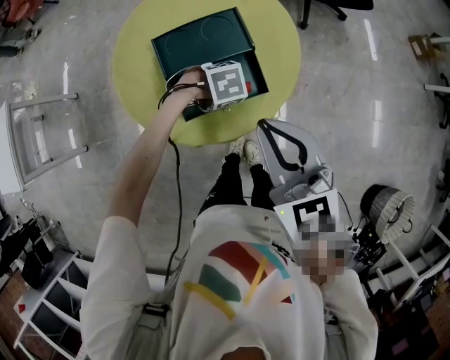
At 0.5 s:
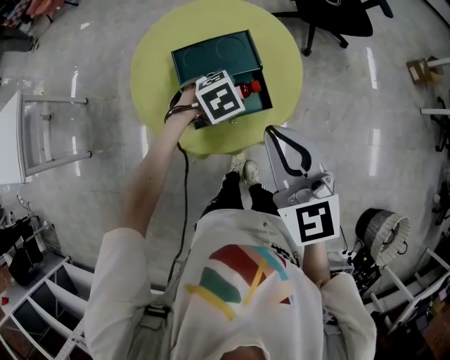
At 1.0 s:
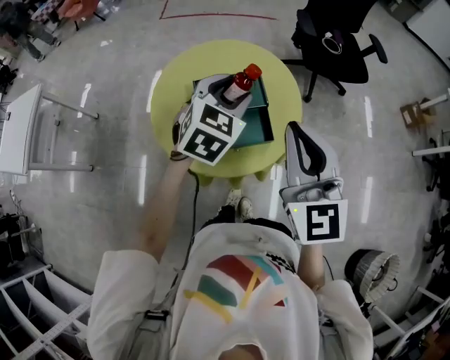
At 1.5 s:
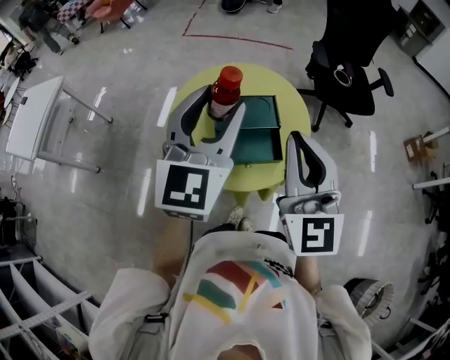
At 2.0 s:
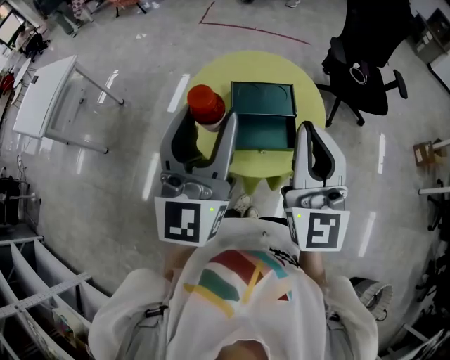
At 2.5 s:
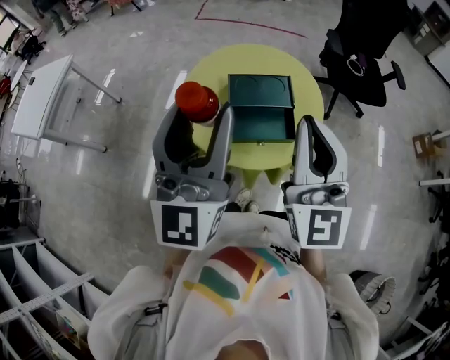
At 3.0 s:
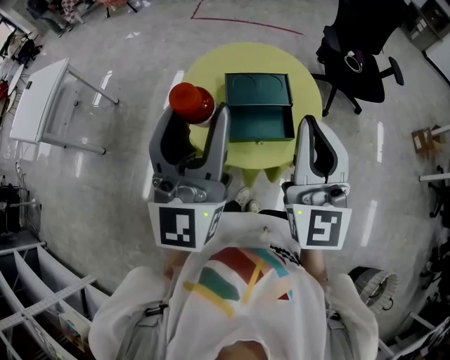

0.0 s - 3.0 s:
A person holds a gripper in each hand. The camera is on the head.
0.0 s - 1.5 s: The left gripper moves upward, some 40 cm, and tilts its fingers approximately 80 degrees upward; the right gripper heads upward, covering approximately 15 cm, and swivels approximately 30 degrees.
1.5 s - 3.0 s: The left gripper travels backward and to the left by roughly 10 cm, and swivels approximately 20 degrees.

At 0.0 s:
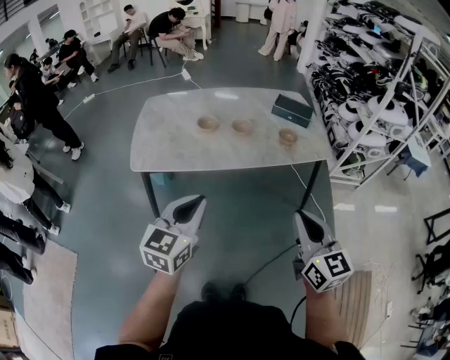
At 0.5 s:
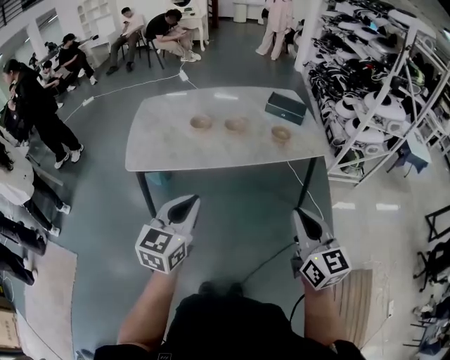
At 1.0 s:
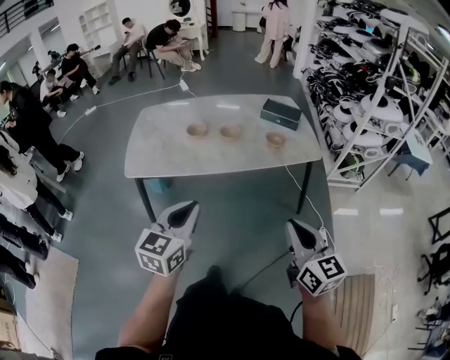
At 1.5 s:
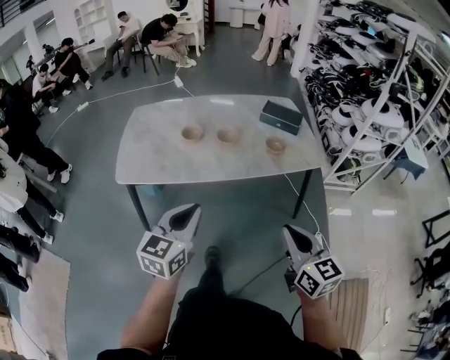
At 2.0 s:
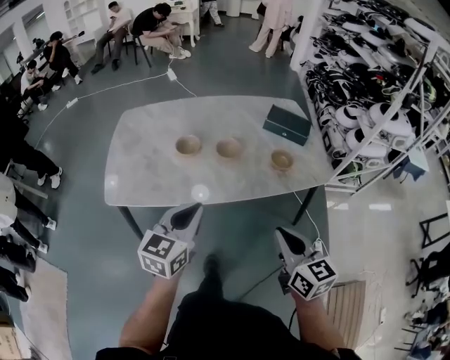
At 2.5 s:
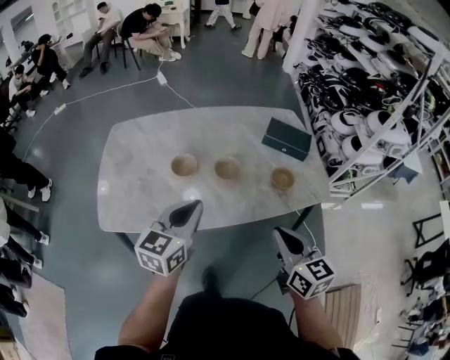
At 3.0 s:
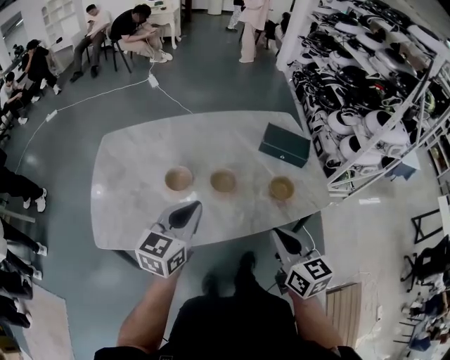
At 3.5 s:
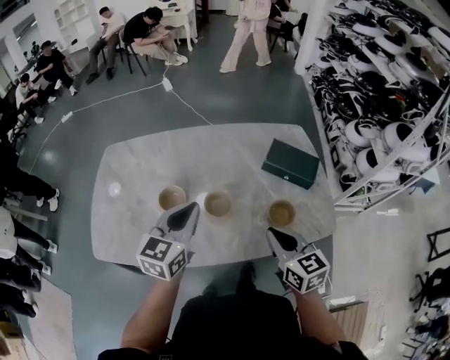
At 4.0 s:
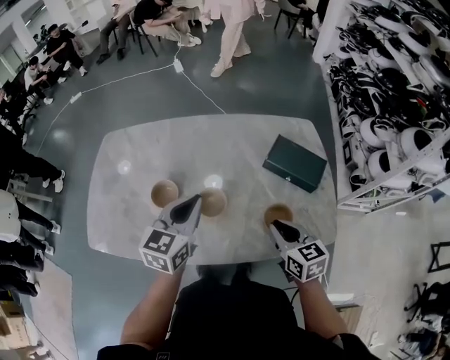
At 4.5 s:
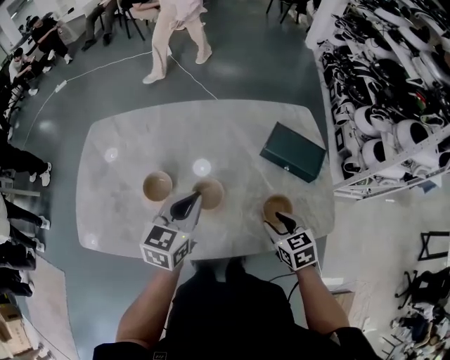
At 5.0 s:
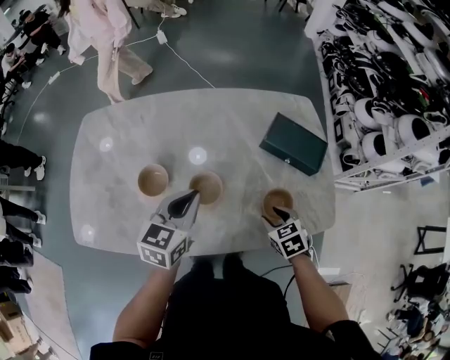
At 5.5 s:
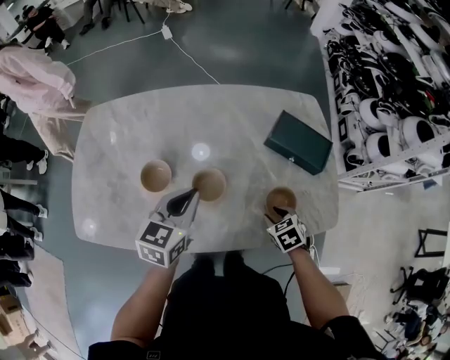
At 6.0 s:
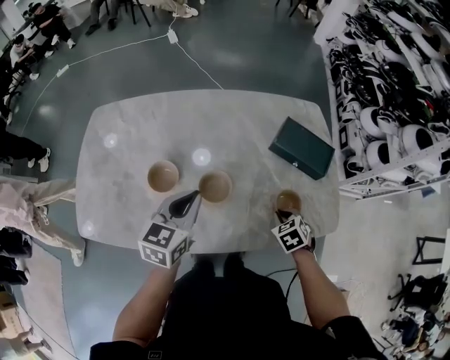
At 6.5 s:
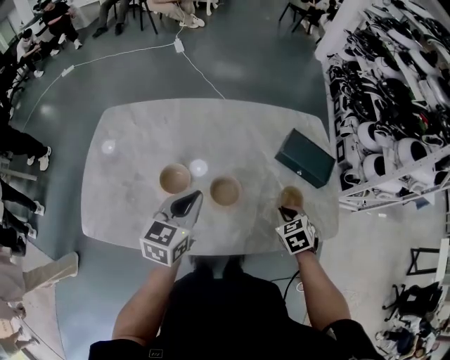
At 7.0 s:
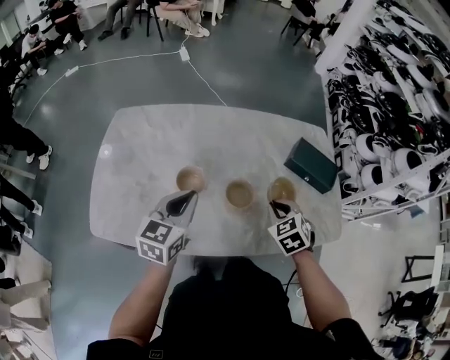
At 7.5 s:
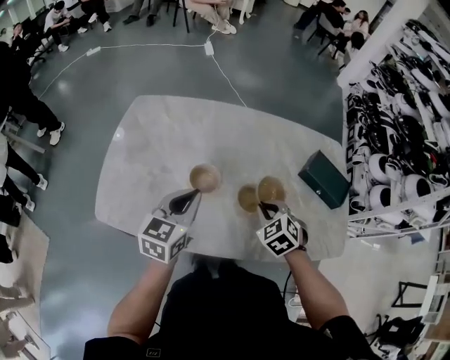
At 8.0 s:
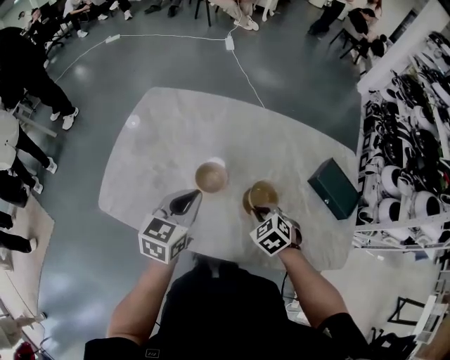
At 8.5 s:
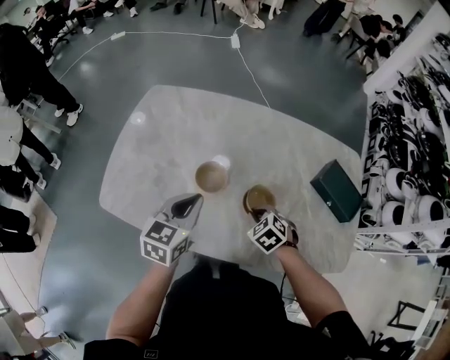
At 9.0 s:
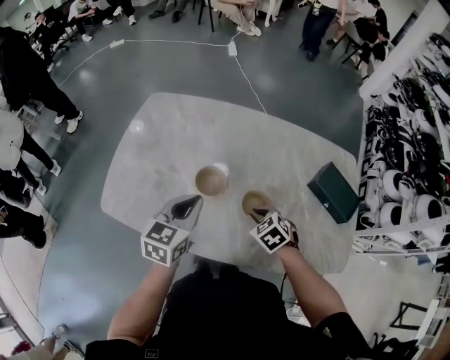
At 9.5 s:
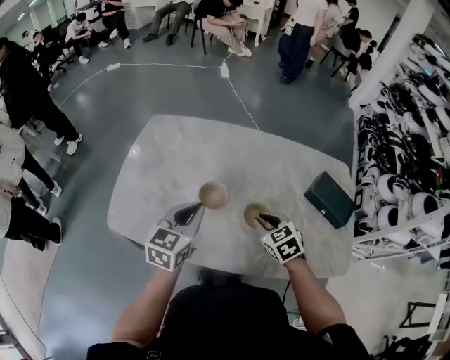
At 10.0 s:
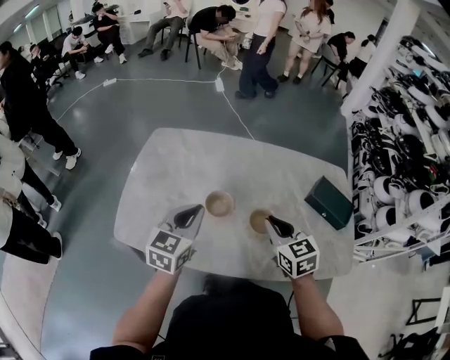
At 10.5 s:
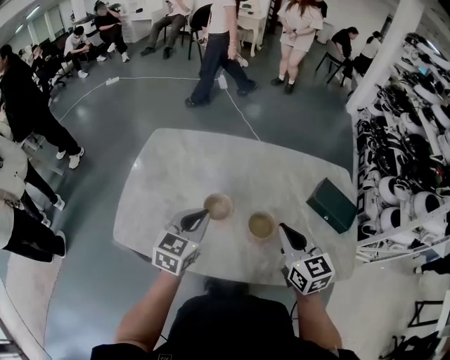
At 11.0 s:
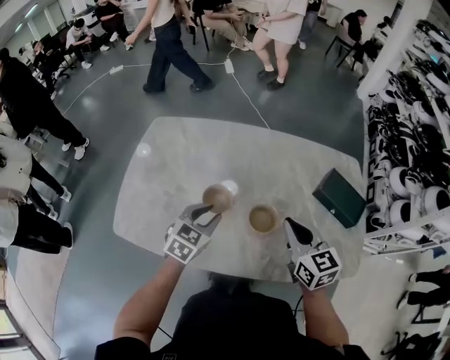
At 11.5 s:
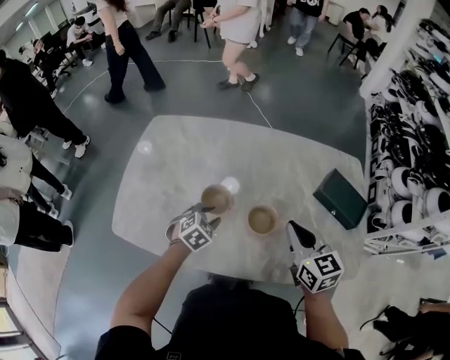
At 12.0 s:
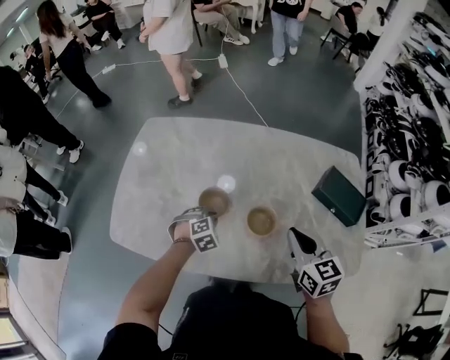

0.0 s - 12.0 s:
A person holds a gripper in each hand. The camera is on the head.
0.0 s - 2.0 s: The right gripper goes about 20 cm forward and downward; the left gripper goes about 25 cm forward.
2.0 s - 4.0 s: The two grippers go some 40 cm forward.
4.0 s - 6.0 s: The right gripper shifts some 15 cm downward, tips its fingers downward by about 40 degrees, and opens and closes again, while the left gripper travels downward by some 10 cm.
6.0 s - 8.0 s: The left gripper travels to the left by some 15 cm; the right gripper moves to the left, about 25 cm, and swivels roughly 30 degrees.
8.0 s - 10.0 s: The left gripper travels upward by about 5 cm. The right gripper travels upward by some 15 cm, and angles its fingers upward, by approximately 30 degrees.
10.0 s - 12.0 s: The left gripper travels downward by roughly 25 cm, and tilts its fingers about 50 degrees downward. The right gripper travels to the right by about 10 cm.

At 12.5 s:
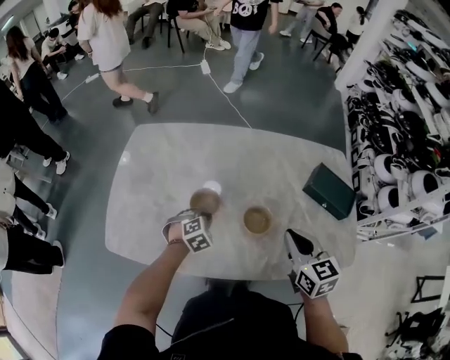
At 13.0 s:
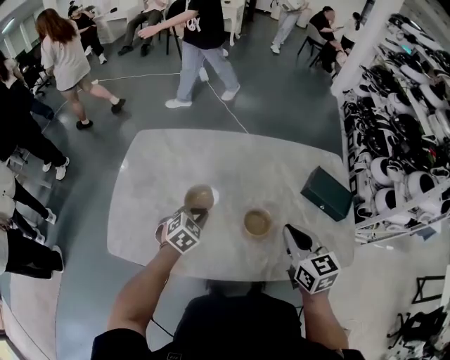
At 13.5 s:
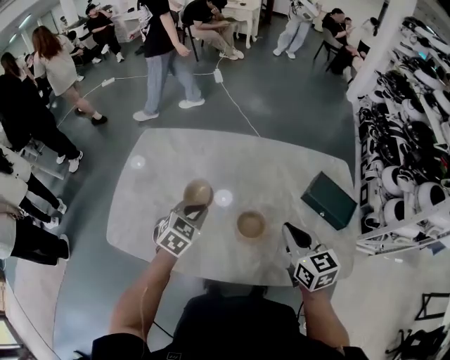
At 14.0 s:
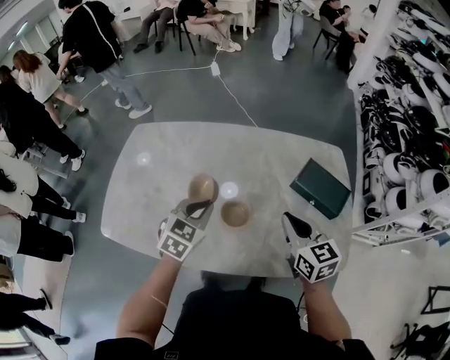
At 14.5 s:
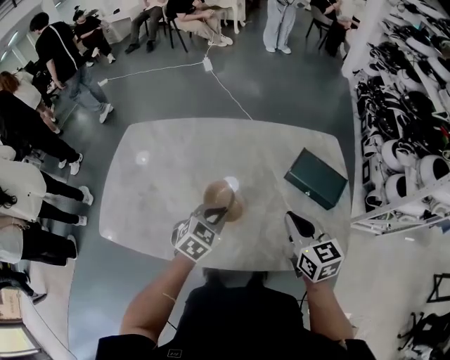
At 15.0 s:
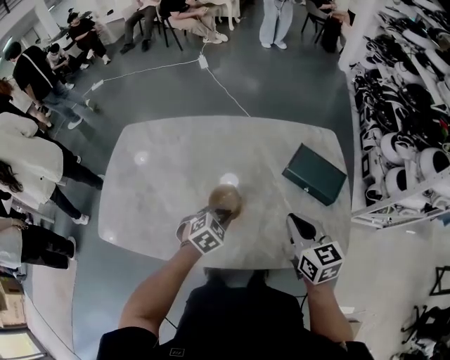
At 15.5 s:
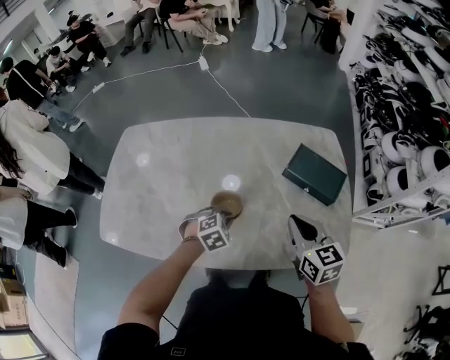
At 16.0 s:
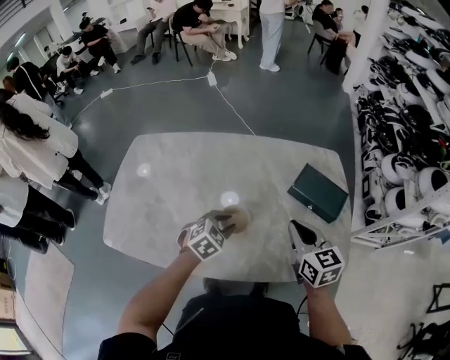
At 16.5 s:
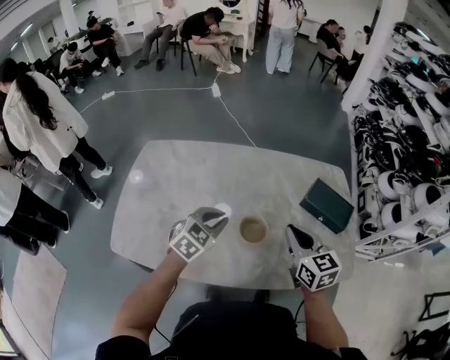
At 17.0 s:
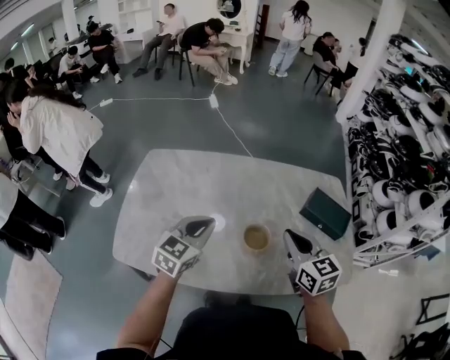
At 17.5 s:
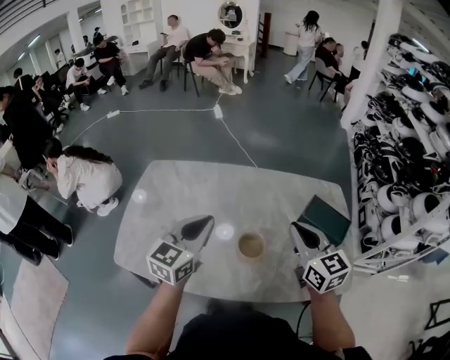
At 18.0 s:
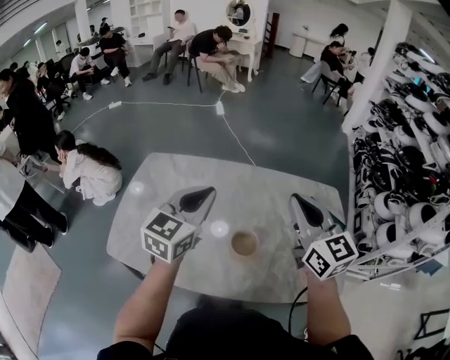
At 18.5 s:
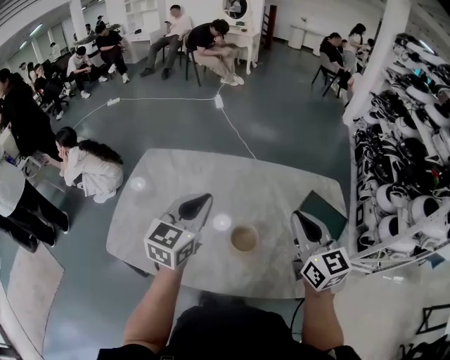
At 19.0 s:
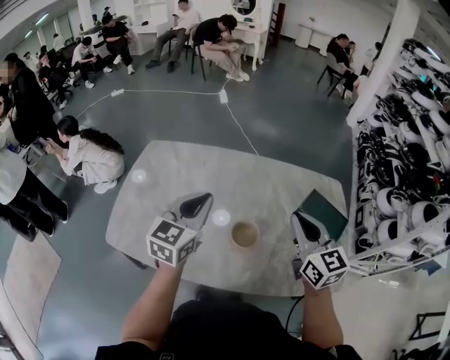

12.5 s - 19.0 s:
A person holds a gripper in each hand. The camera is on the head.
12.5 s - 14.5 s: The right gripper moves to the right, some 15 cm, while the left gripper goes approximately 25 cm to the right and upward, and rotates roughly 30 degrees.
14.5 s - 17.0 s: Both grippers move to the left and upward, about 20 cm. The left gripper rotates some 30 degrees, and opens and closes again.
17.0 s - 19.0 s: The right gripper moves to the right and upward, some 10 cm. The left gripper moves upward, about 10 cm.

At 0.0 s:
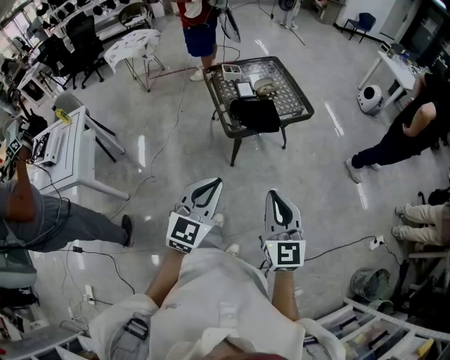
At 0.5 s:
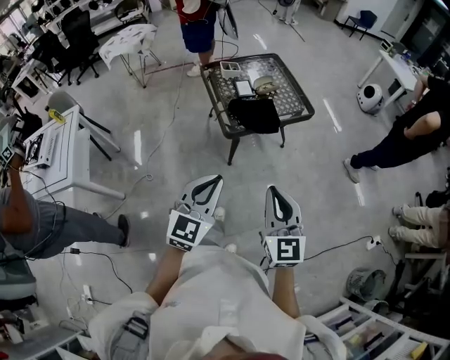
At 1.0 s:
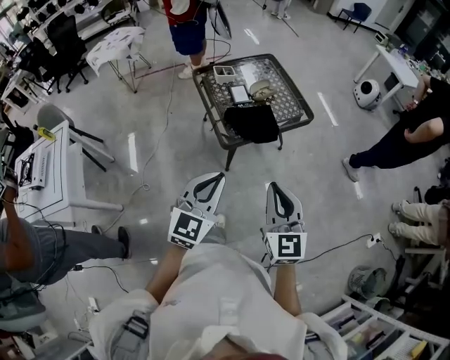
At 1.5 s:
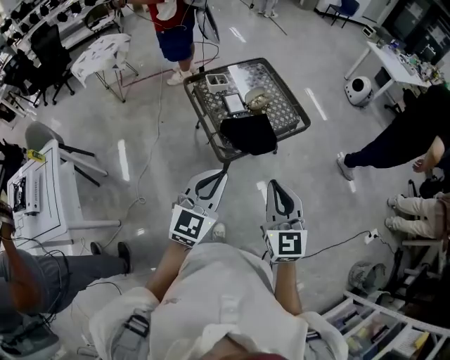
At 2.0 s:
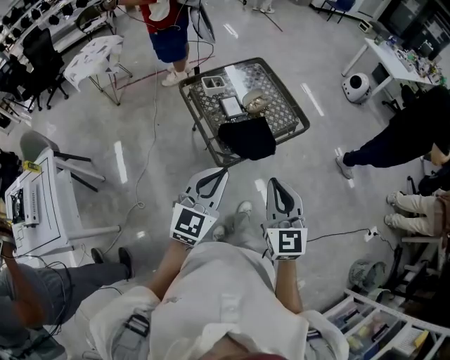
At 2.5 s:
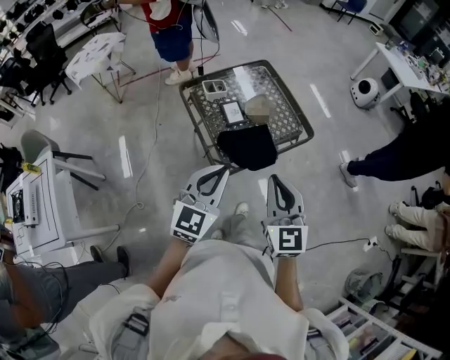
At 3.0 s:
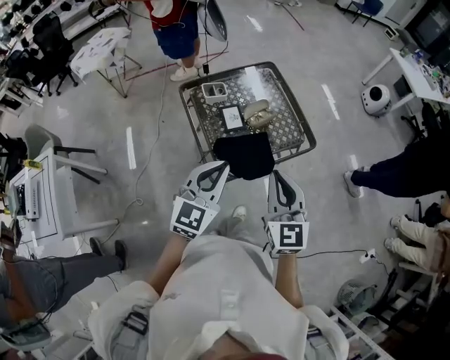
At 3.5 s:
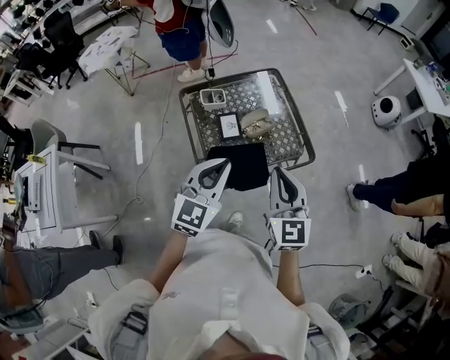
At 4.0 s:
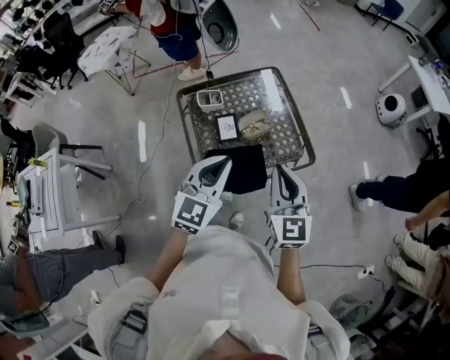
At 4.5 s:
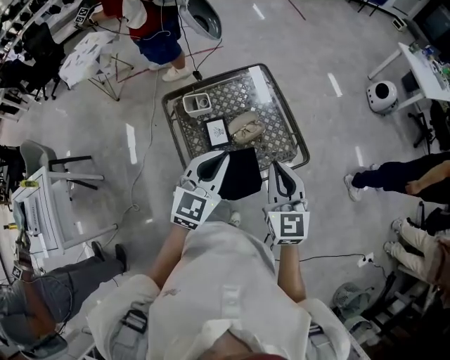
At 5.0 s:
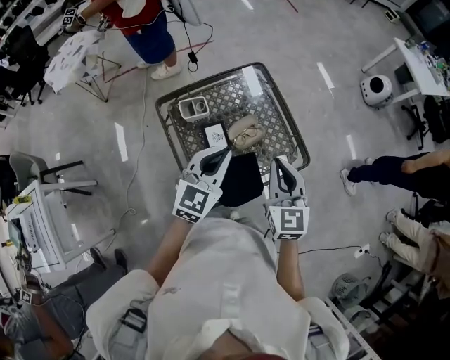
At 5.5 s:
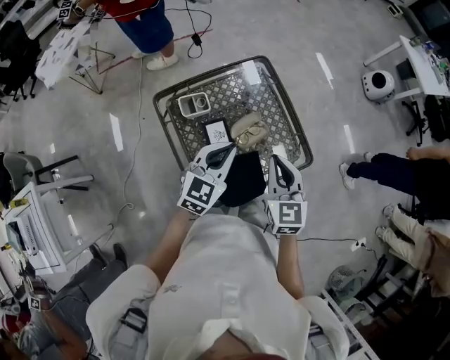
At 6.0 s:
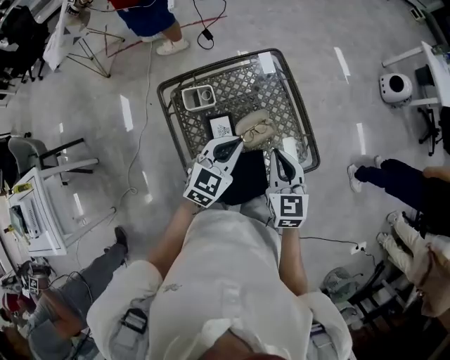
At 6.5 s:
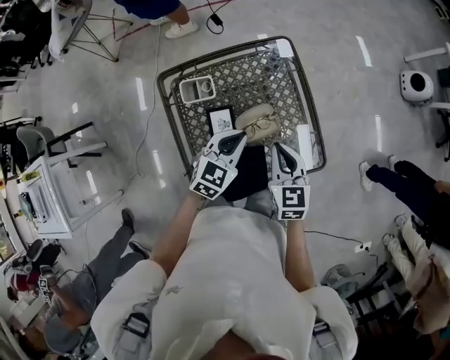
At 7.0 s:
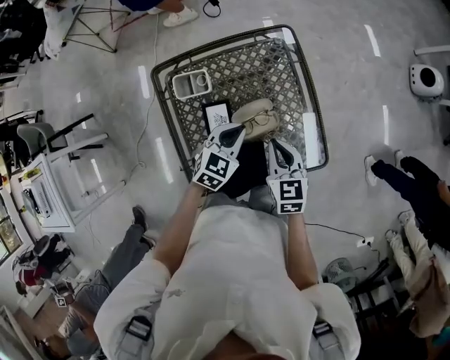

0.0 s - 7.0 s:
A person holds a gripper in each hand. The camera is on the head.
0.0 s - 2.0 s: The two grippers go some 25 cm forward.
2.0 s - 3.5 s: Both grippers travel together forward, approximately 20 cm.
3.5 s - 5.0 s: The two grippers go about 15 cm forward.
5.0 s - 7.0 s: The grippers both shift downward and forward by approximately 25 cm. The right gripper swivels approximately 30 degrees, while the left gripper changes its angle by some 30 degrees.
